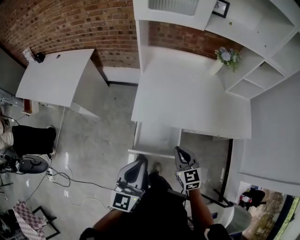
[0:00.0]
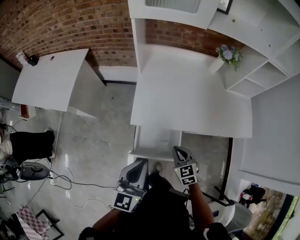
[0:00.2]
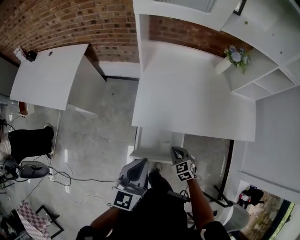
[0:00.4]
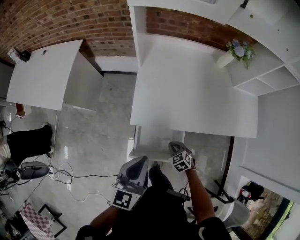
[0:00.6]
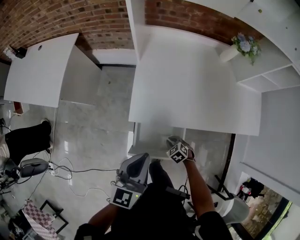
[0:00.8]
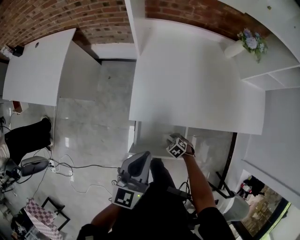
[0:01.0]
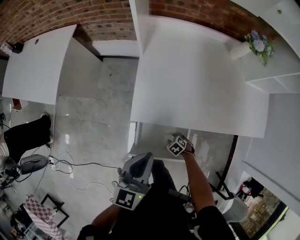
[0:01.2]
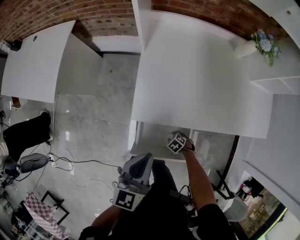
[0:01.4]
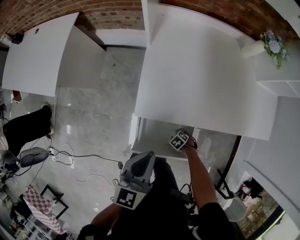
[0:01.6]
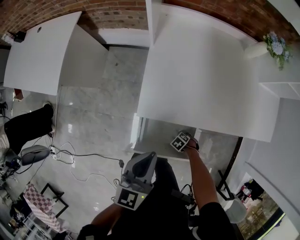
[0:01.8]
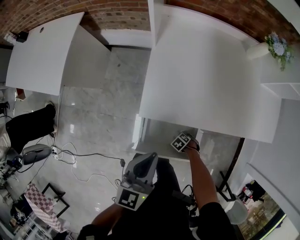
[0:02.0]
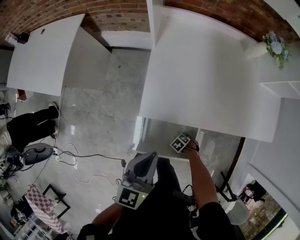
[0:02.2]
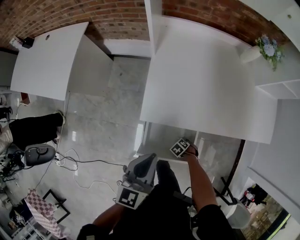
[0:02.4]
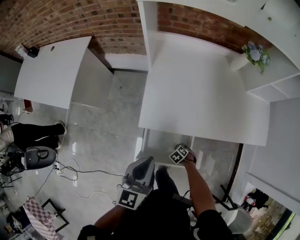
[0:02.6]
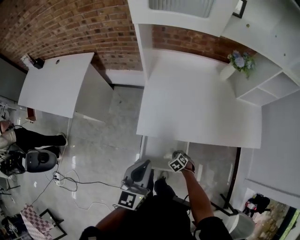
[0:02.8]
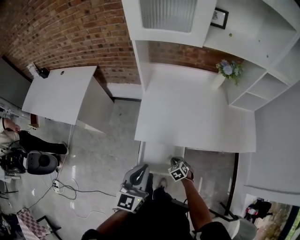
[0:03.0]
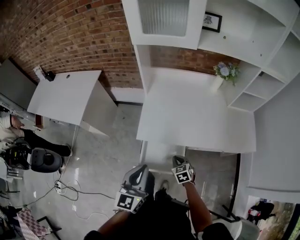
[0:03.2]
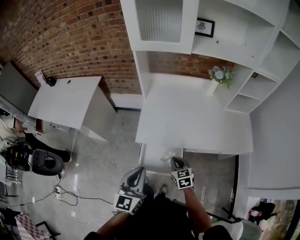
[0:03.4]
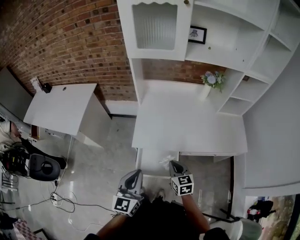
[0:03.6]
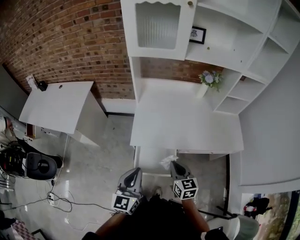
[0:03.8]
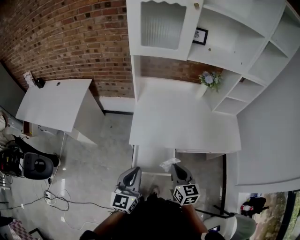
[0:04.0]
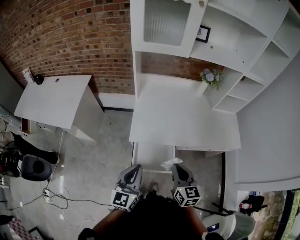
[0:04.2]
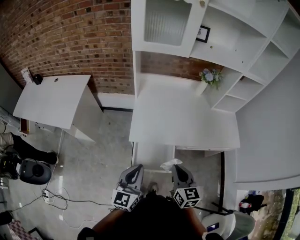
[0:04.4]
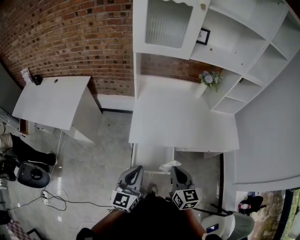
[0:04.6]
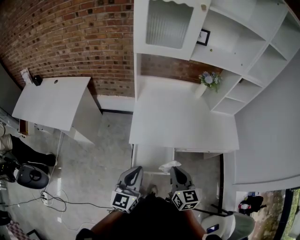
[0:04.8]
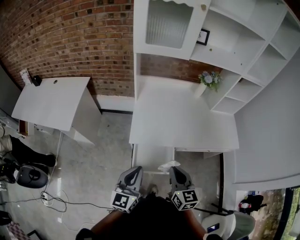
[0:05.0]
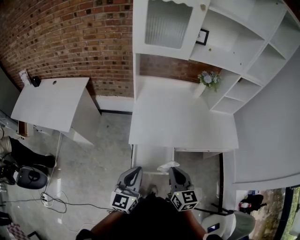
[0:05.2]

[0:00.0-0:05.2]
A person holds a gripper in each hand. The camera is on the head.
0:00.0 to 0:01.8: The left gripper shifts by approximately 20 cm; the right gripper travels downward by approximately 50 cm, angles its fingers downward, by roughly 50 degrees, and opens.
0:01.8 to 0:03.4: The left gripper shifts by approximately 20 cm, while the right gripper goes approximately 40 cm upward, tilts its fingers some 40 degrees upward, and closes up.
0:03.4 to 0:05.2: The right gripper moves upward and backward, about 20 cm, and swivels some 20 degrees.

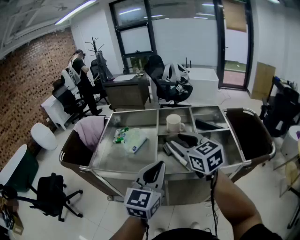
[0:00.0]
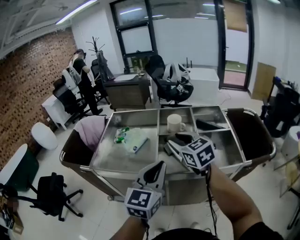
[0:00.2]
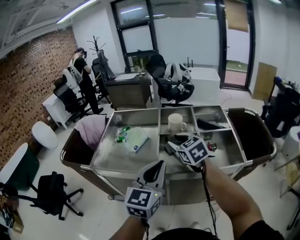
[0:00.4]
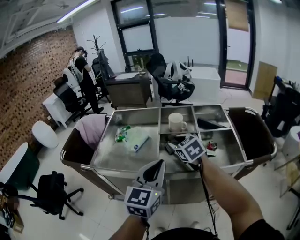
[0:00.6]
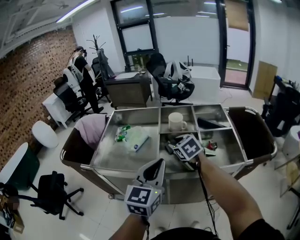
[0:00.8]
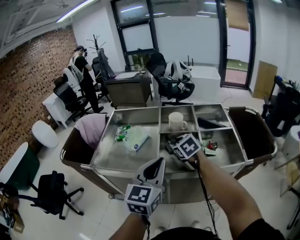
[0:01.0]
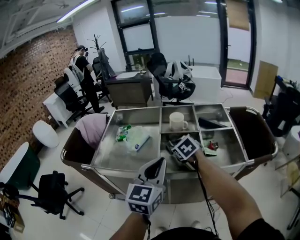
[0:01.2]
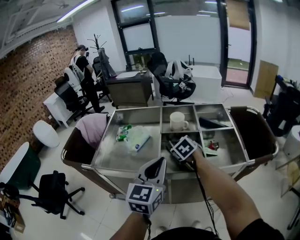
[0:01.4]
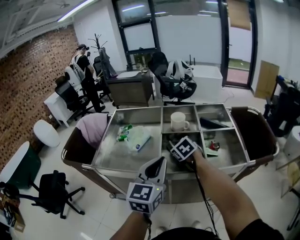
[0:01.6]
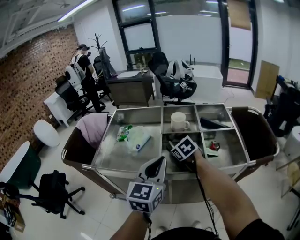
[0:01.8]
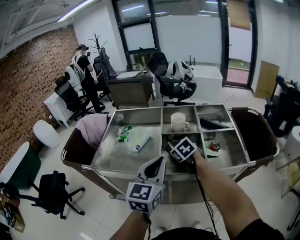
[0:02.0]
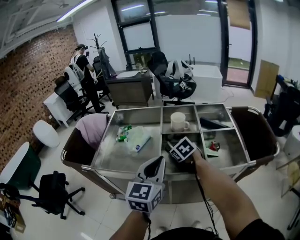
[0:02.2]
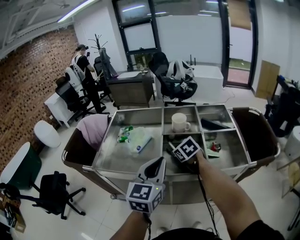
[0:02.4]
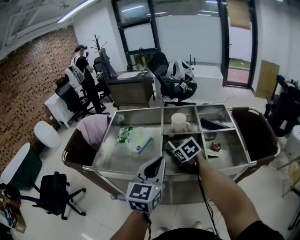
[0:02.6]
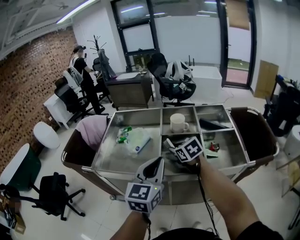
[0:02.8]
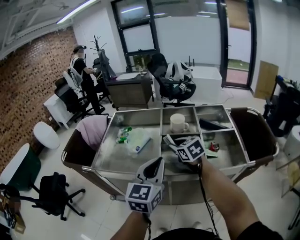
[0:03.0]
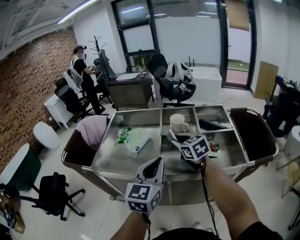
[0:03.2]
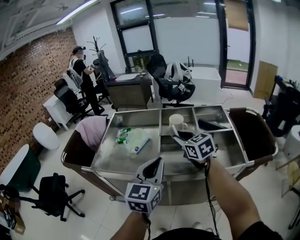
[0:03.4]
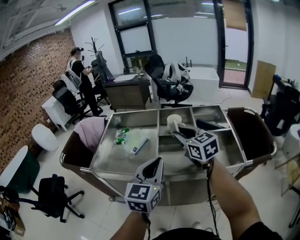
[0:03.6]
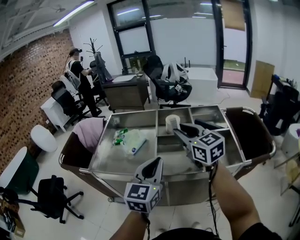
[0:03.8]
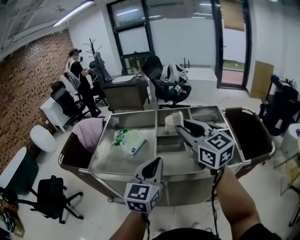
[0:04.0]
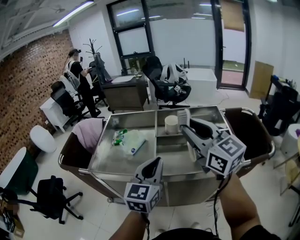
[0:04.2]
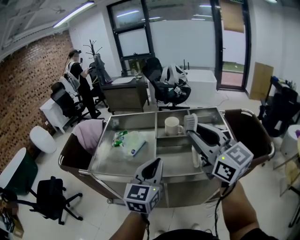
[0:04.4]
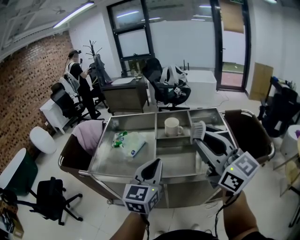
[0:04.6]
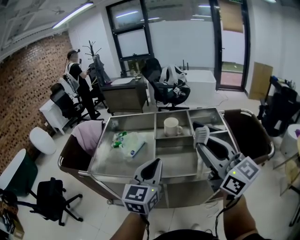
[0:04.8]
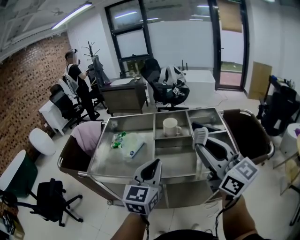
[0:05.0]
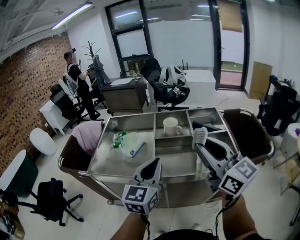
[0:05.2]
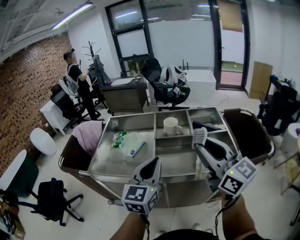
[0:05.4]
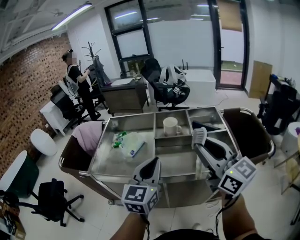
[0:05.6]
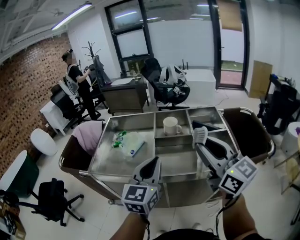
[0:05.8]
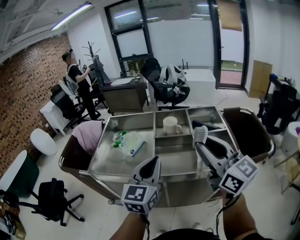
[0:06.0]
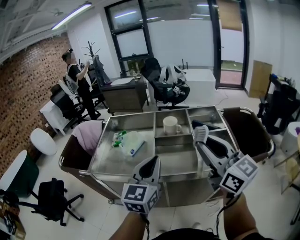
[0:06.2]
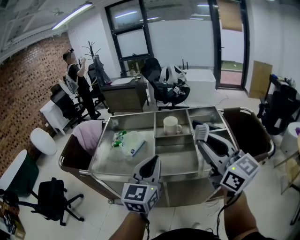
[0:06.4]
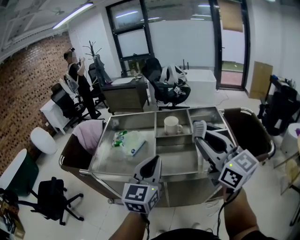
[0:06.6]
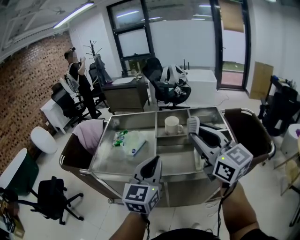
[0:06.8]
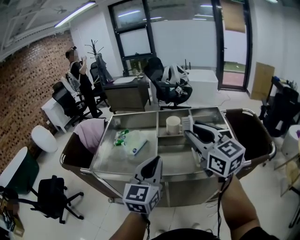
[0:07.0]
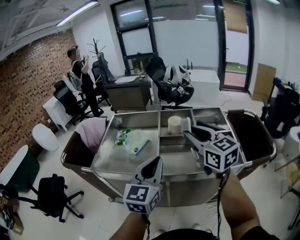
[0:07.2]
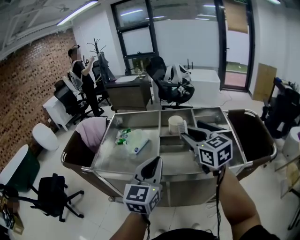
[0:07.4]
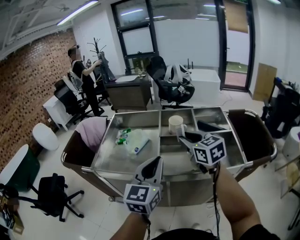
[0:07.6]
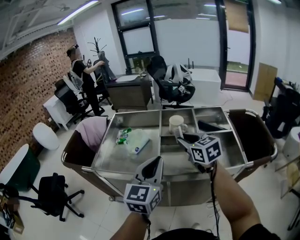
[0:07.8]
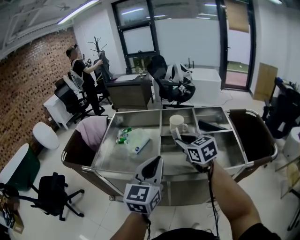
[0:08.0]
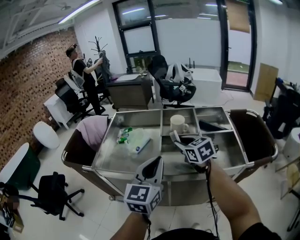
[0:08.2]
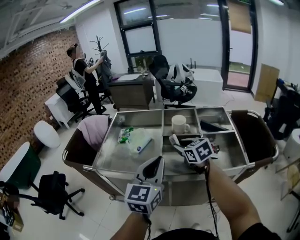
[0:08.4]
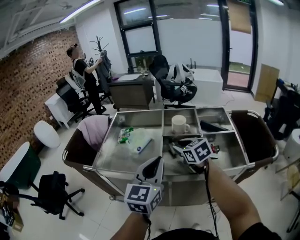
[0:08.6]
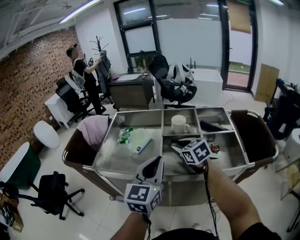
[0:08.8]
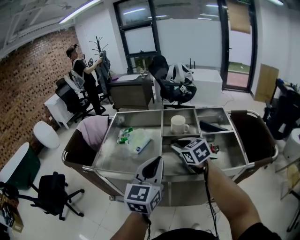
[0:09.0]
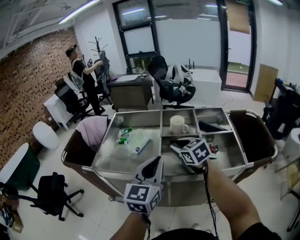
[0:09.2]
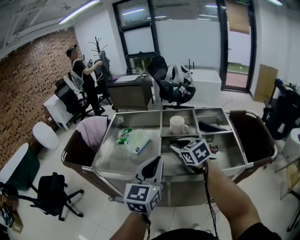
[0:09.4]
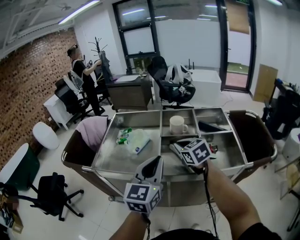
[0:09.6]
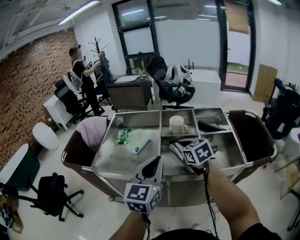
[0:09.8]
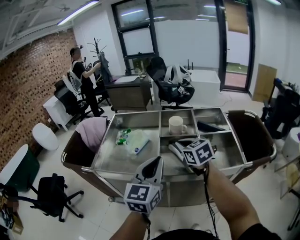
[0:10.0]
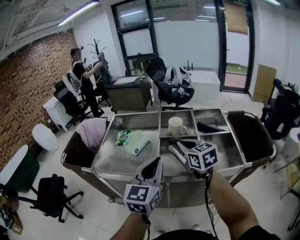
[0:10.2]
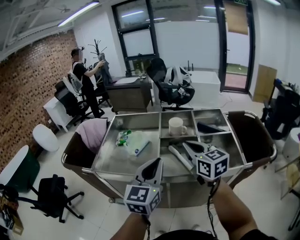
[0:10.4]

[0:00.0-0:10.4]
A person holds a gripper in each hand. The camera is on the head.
0:00.0 to 0:01.4: The right gripper heads downward and forward, covering some 20 cm, and tips its fingers downward by about 40 degrees.
0:01.4 to 0:03.0: The right gripper travels upward by about 5 cm, and turns by about 20 degrees.
0:03.0 to 0:04.4: The right gripper is displaced upward and backward by roughly 25 cm, and tips its fingers upward by approximately 40 degrees.
0:04.4 to 0:06.0: The right gripper shifts by about 5 cm.
0:06.0 to 0:07.4: The right gripper shifts some 15 cm forward and downward, and changes its angle by some 20 degrees.
0:07.4 to 0:09.0: The right gripper moves downward, approximately 10 cm.
0:09.0 to 0:10.4: The right gripper goes approximately 10 cm upward and backward, changes its angle by approximately 20 degrees, and closes up.

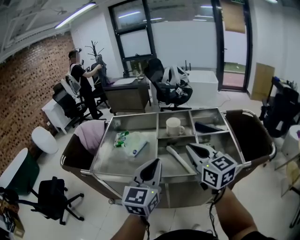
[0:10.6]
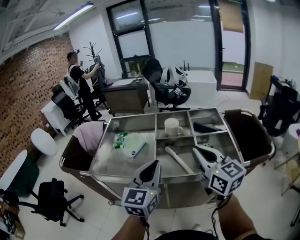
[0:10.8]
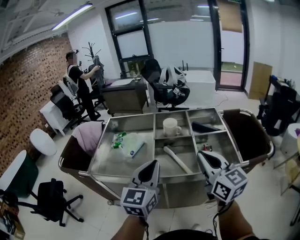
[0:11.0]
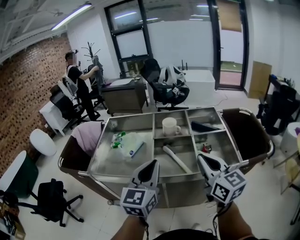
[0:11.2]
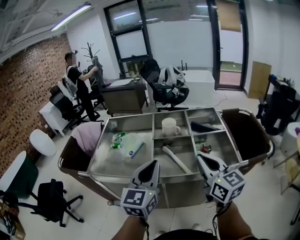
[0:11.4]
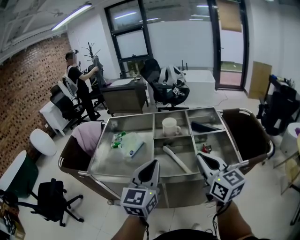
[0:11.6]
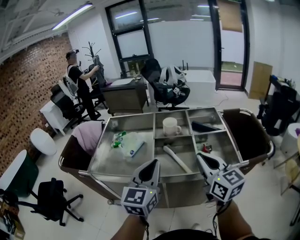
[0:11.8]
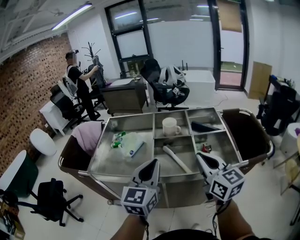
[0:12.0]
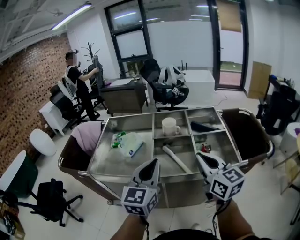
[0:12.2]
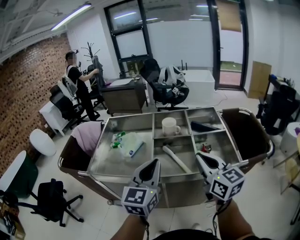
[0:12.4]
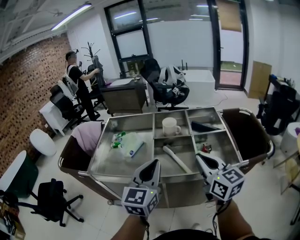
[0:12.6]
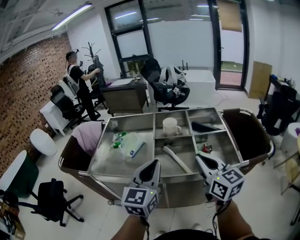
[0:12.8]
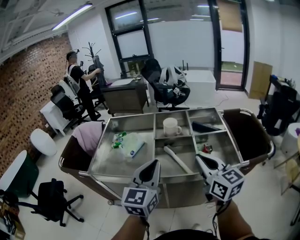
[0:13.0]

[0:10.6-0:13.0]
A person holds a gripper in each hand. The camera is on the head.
0:10.6 to 0:11.8: The right gripper ends up roughly 5 cm from where it was.
0:11.8 to 0:13.0: Both grippers stay about where they are.

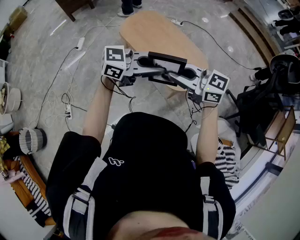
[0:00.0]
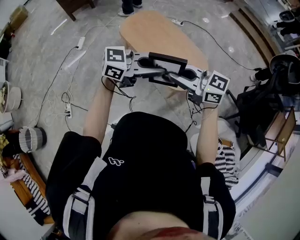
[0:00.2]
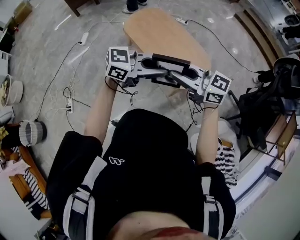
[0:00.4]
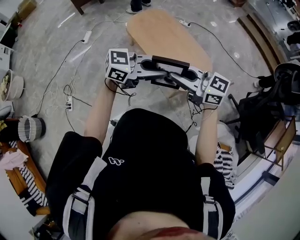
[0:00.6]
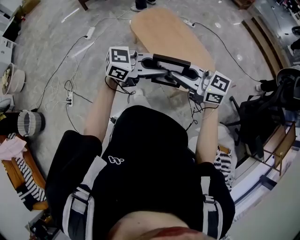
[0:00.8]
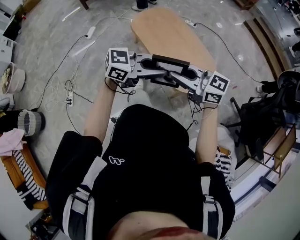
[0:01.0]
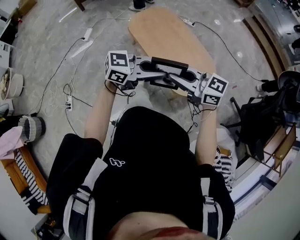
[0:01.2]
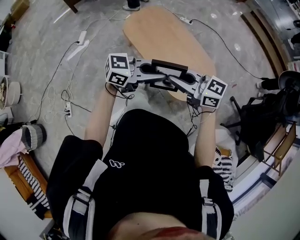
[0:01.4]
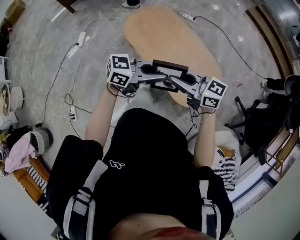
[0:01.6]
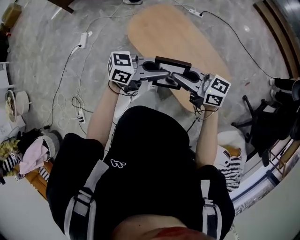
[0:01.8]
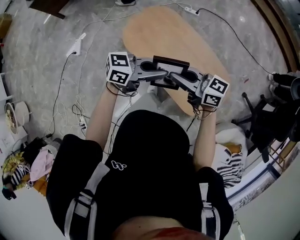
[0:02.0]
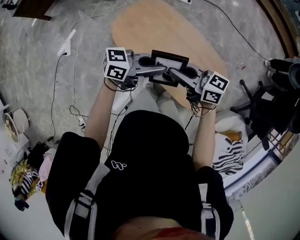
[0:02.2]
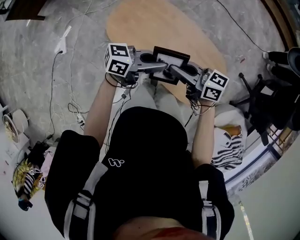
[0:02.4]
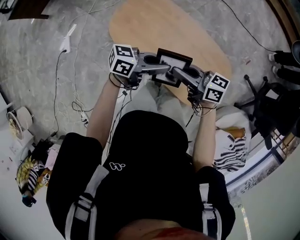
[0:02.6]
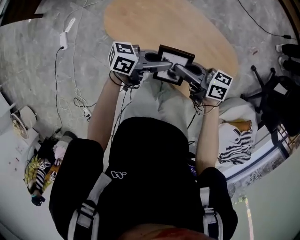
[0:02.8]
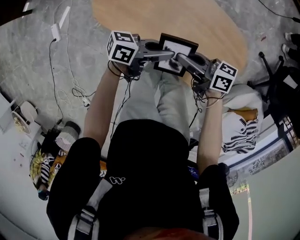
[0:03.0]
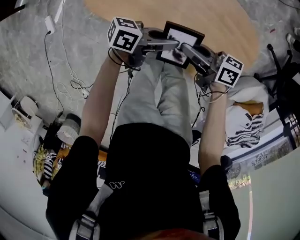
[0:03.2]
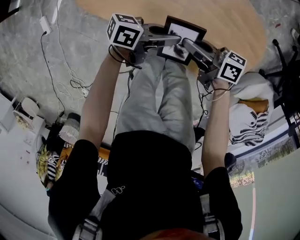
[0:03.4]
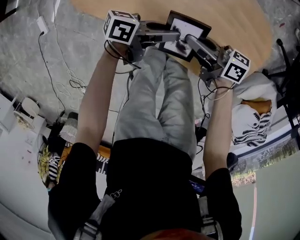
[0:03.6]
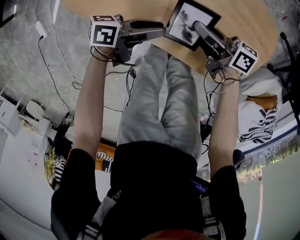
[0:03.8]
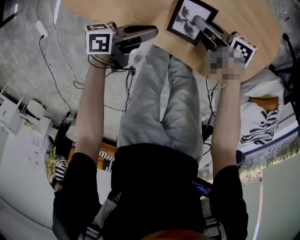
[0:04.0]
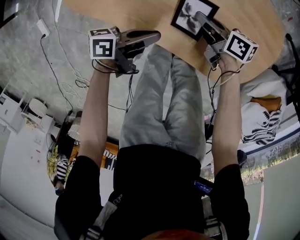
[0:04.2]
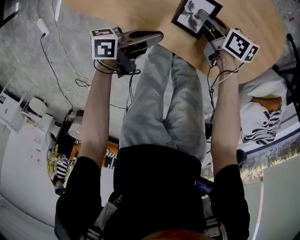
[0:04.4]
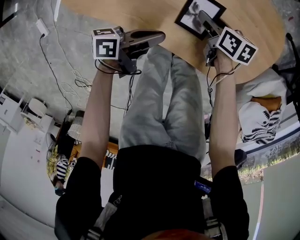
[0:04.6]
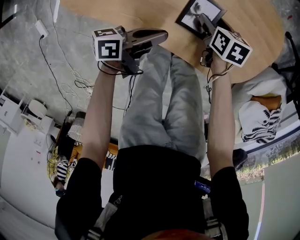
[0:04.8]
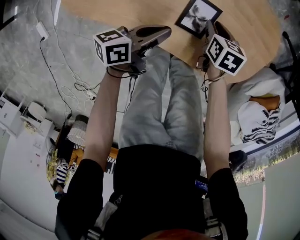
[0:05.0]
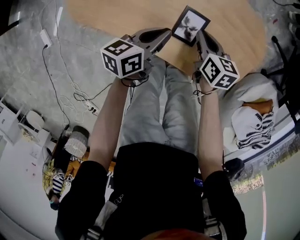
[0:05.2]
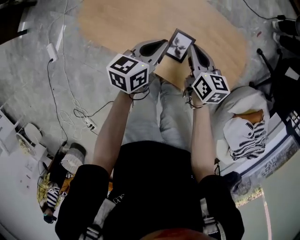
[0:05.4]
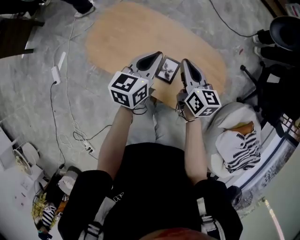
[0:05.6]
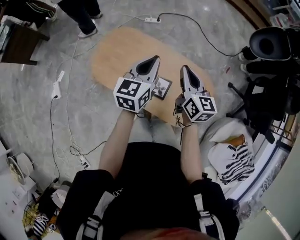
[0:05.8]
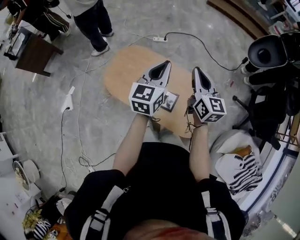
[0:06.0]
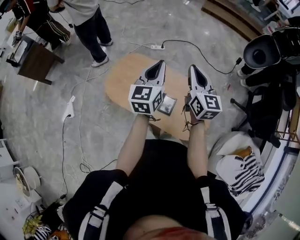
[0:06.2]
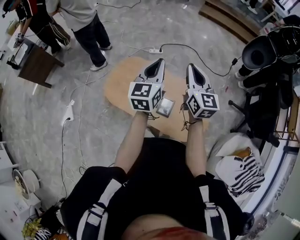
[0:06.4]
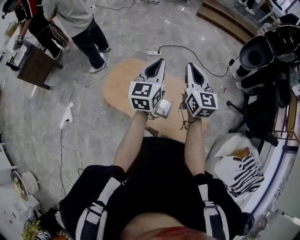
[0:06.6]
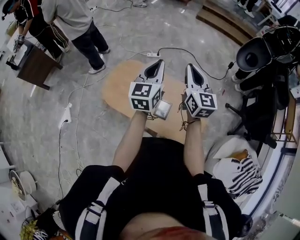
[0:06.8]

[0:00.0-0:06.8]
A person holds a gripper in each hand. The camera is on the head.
0:00.0 to 0:01.4: The left gripper shifts by roughly 15 cm. The right gripper changes place by approximately 15 cm.
0:01.4 to 0:02.8: The right gripper ends up about 35 cm from where it was, and turns by some 40 degrees. Meanwhile the left gripper moves some 35 cm, and turns by roughly 40 degrees.
0:02.8 to 0:04.0: The grippers both shift downward by roughly 30 cm. The right gripper rotates some 30 degrees; the left gripper changes its angle by about 30 degrees.
0:04.0 to 0:05.4: Both grippers move upward, some 15 cm. The right gripper rotates some 40 degrees, and opens, then closes again; the left gripper swivels about 40 degrees.
0:05.4 to 0:06.8: The grippers both shift upward by approximately 40 cm. The right gripper tips its fingers upward by approximately 30 degrees, while the left gripper swivels about 40 degrees.
